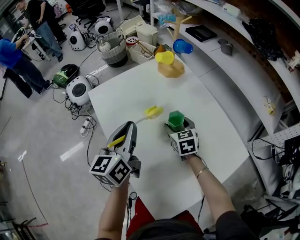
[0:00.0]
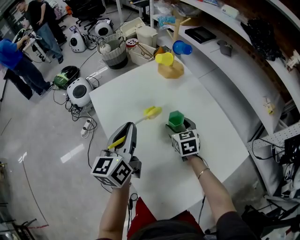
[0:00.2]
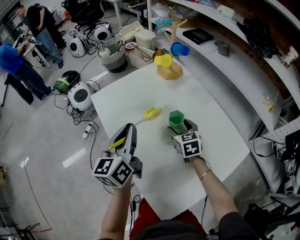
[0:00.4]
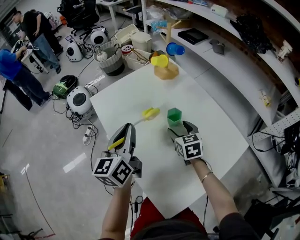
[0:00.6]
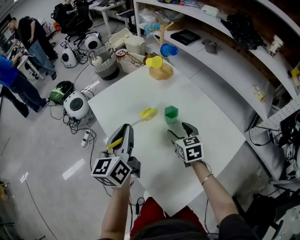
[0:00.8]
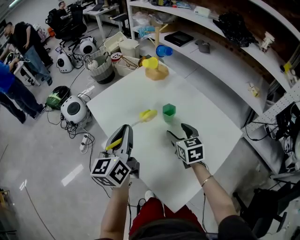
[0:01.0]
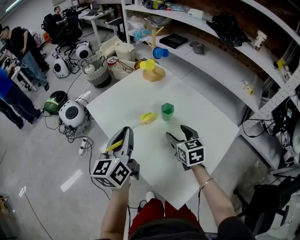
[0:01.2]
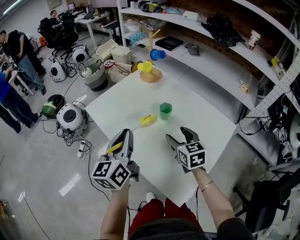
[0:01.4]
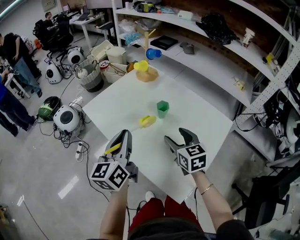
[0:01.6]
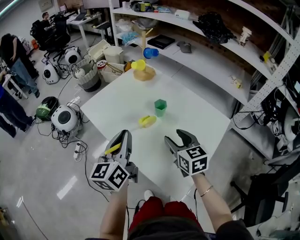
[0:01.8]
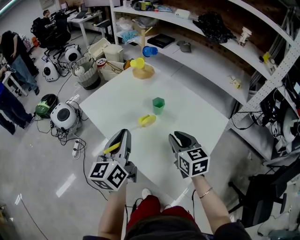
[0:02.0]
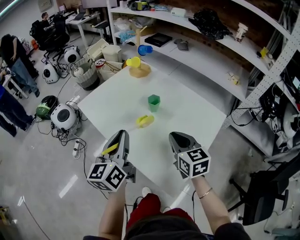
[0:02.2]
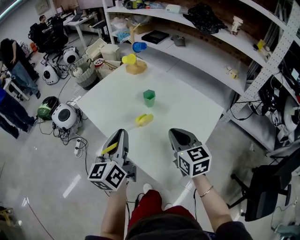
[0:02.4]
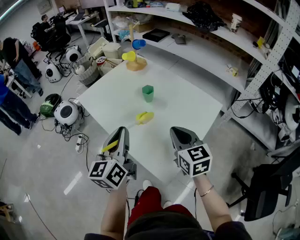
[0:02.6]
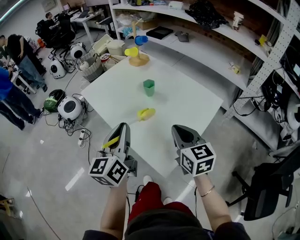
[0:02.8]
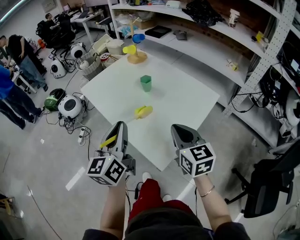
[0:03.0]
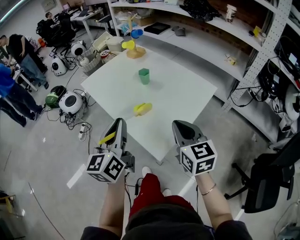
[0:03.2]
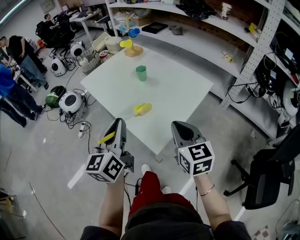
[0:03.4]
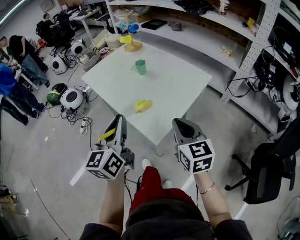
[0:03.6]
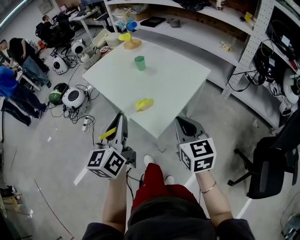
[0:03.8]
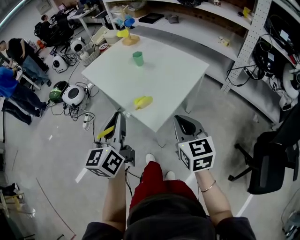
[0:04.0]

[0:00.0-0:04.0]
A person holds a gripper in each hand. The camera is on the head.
0:00.0 to 0:01.4: The left gripper heads backward, covering some 10 cm; the right gripper travels backward and upward by roughly 20 cm.
0:01.4 to 0:02.6: The right gripper heads backward, upward and to the right, covering approximately 15 cm, and closes its fingers, while the left gripper heads backward and to the right, covering about 10 cm.
0:02.6 to 0:04.0: The two grippers go roughly 25 cm backward.

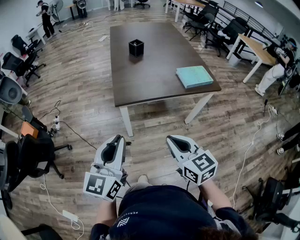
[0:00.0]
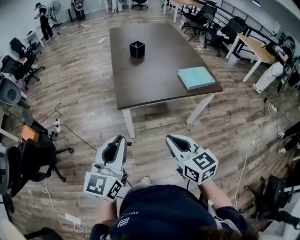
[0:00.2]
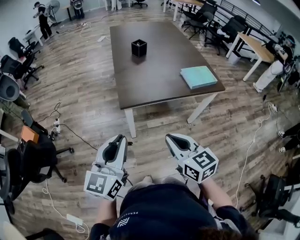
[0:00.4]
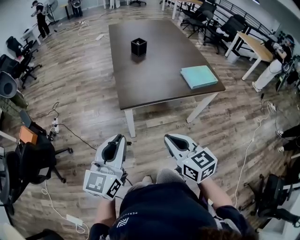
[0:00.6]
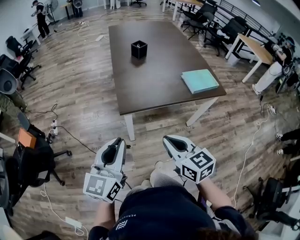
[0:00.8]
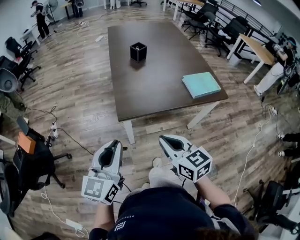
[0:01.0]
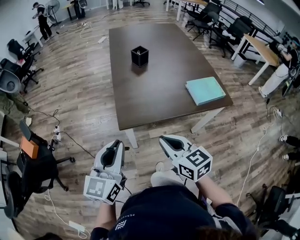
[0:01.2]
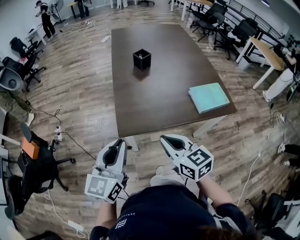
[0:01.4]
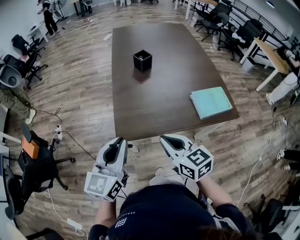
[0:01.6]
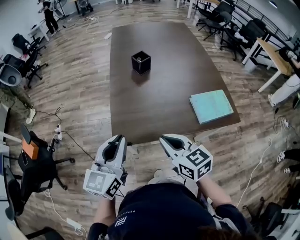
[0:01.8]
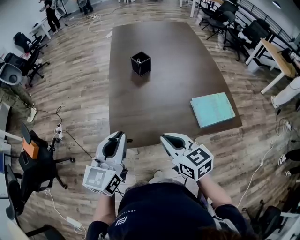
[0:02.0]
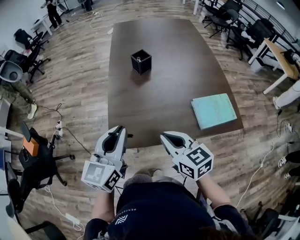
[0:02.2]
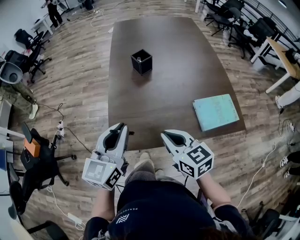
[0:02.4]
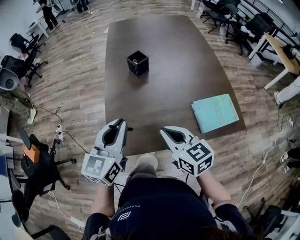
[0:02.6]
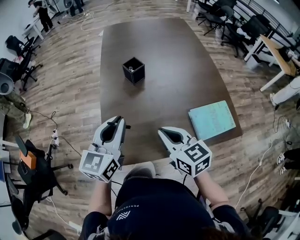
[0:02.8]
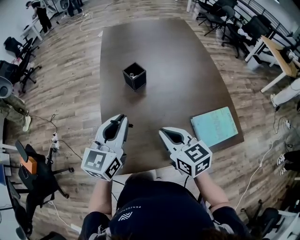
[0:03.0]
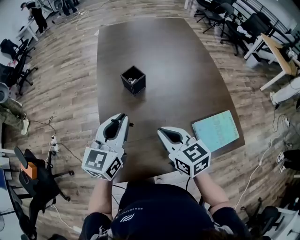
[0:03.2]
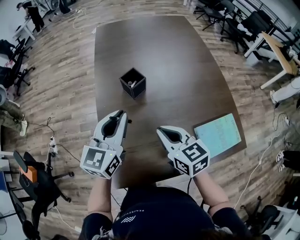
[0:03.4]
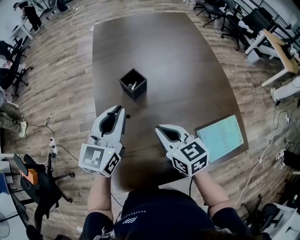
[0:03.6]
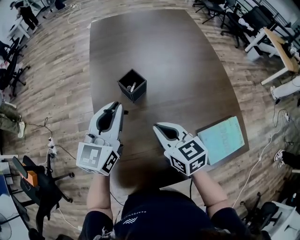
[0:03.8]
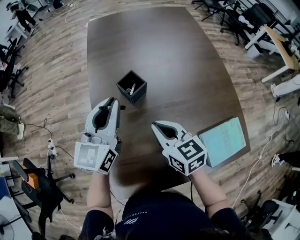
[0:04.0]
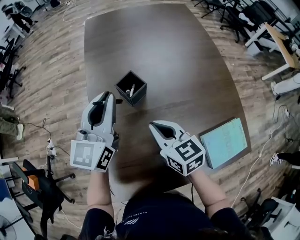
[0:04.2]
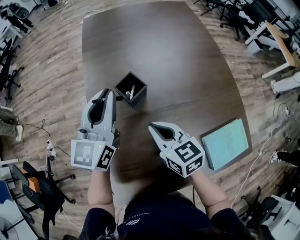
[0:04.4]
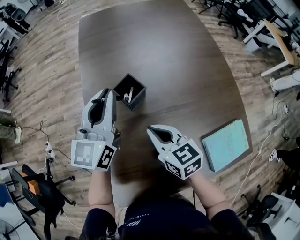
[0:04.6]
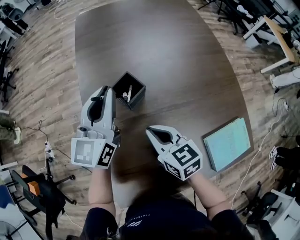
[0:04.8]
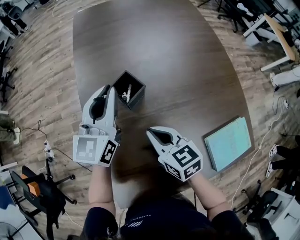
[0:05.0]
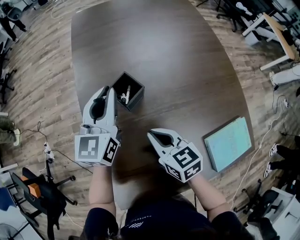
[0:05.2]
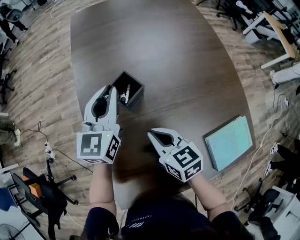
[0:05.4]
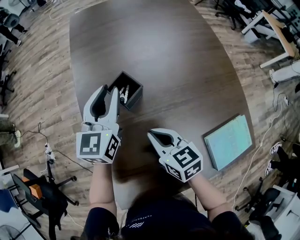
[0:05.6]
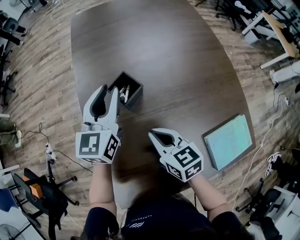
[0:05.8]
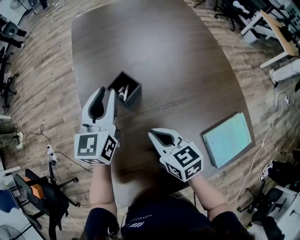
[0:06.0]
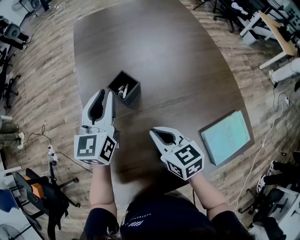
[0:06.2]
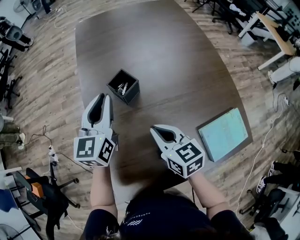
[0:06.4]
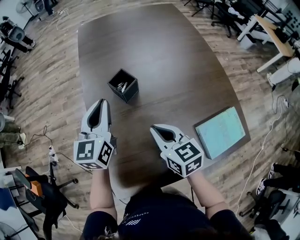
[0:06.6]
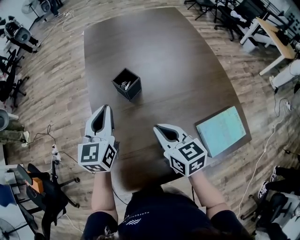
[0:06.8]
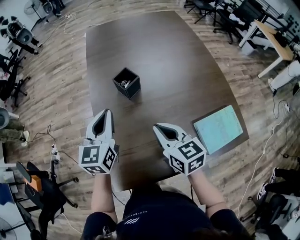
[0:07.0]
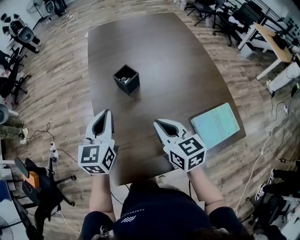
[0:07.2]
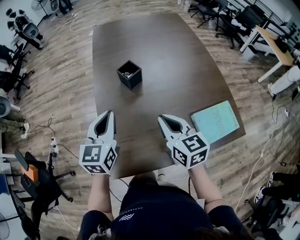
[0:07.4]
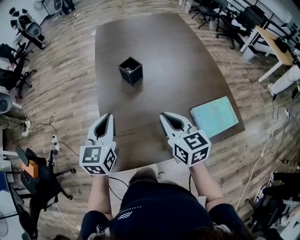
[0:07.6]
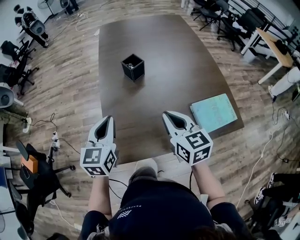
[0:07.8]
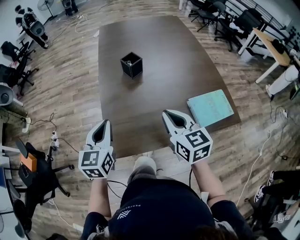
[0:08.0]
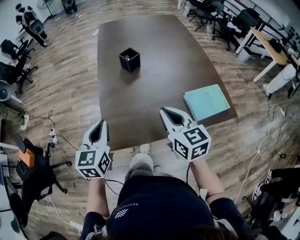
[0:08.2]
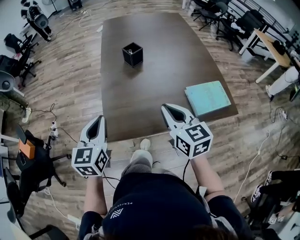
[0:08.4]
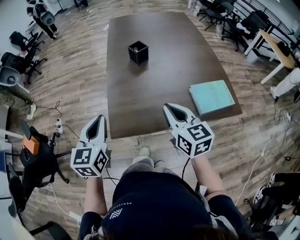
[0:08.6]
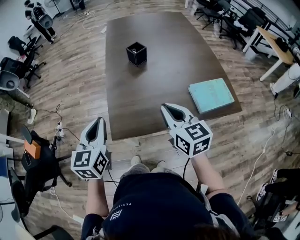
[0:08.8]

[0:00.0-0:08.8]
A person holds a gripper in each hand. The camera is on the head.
0:00.0 to 0:01.4: Both grippers travel together forward, approximately 20 cm.
0:01.4 to 0:03.0: The left gripper shifts roughly 30 cm forward and to the right. The right gripper travels forward by some 25 cm.
0:03.0 to 0:04.4: The grippers both shift forward by about 20 cm.
0:04.4 to 0:05.8: The left gripper heads downward, covering roughly 5 cm.
0:05.8 to 0:07.4: The left gripper is displaced backward by roughly 20 cm, and closes its fingers. Meanwhile the right gripper is displaced backward and upward by approximately 15 cm.
0:07.4 to 0:08.8: The left gripper shifts roughly 20 cm backward and to the left. Meanwhile the right gripper shifts approximately 15 cm backward.

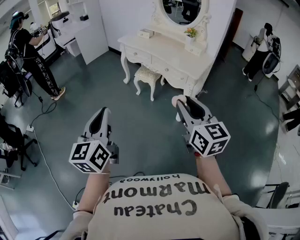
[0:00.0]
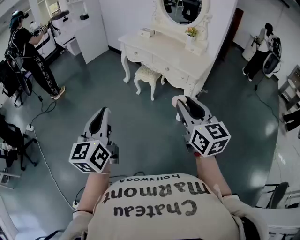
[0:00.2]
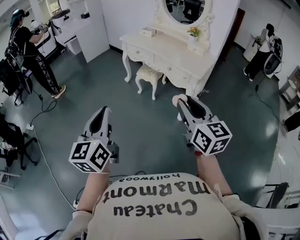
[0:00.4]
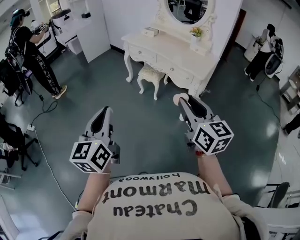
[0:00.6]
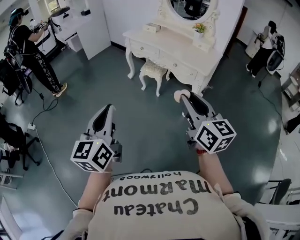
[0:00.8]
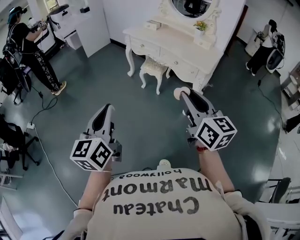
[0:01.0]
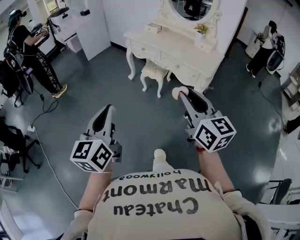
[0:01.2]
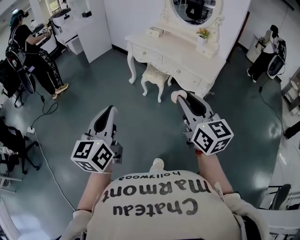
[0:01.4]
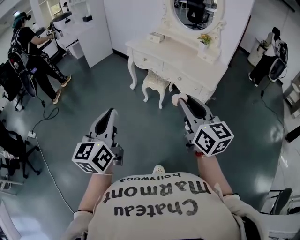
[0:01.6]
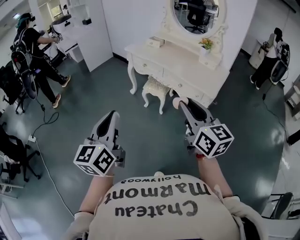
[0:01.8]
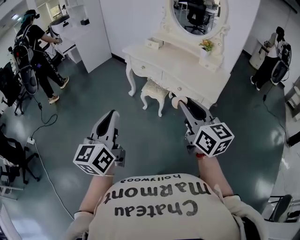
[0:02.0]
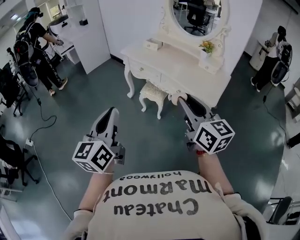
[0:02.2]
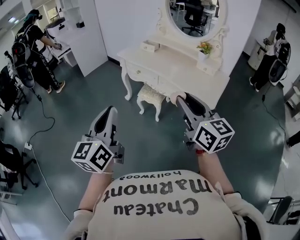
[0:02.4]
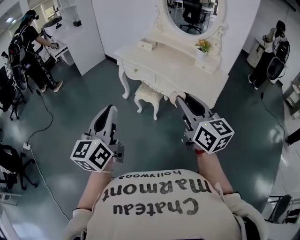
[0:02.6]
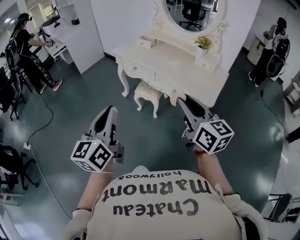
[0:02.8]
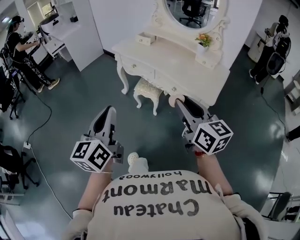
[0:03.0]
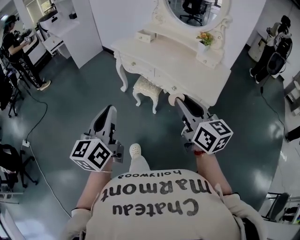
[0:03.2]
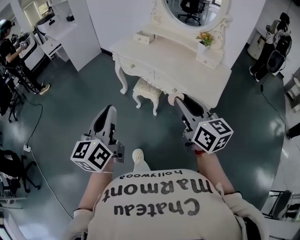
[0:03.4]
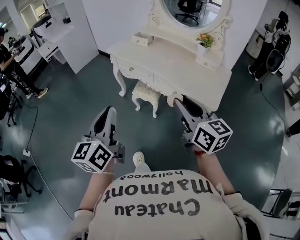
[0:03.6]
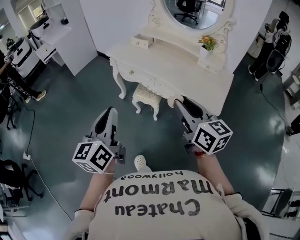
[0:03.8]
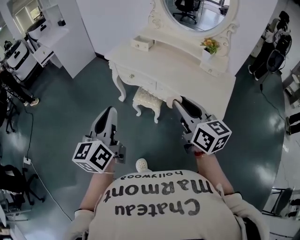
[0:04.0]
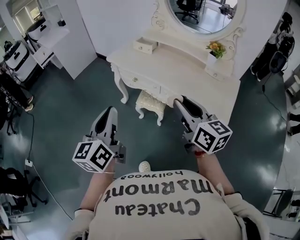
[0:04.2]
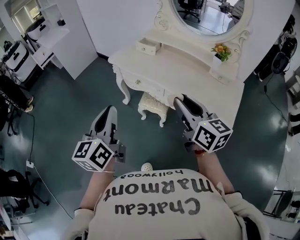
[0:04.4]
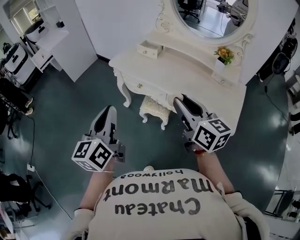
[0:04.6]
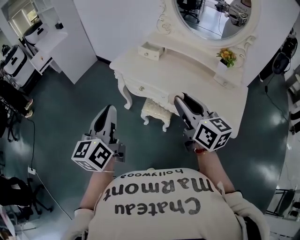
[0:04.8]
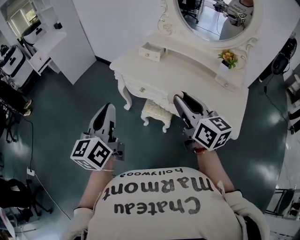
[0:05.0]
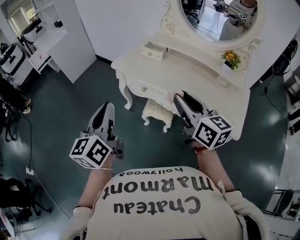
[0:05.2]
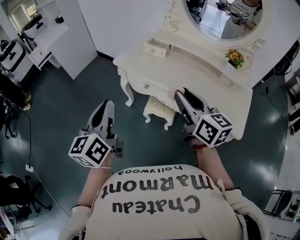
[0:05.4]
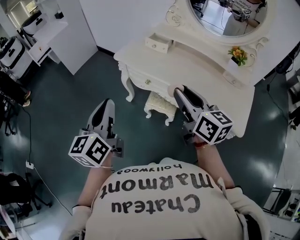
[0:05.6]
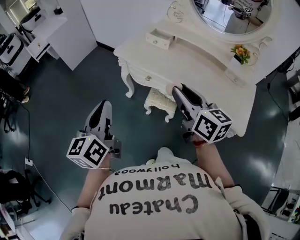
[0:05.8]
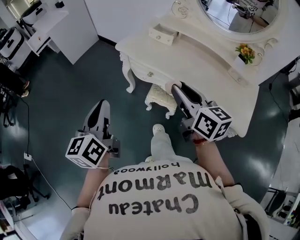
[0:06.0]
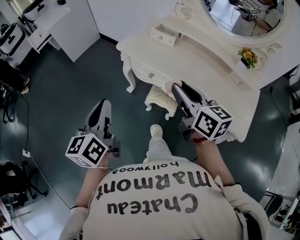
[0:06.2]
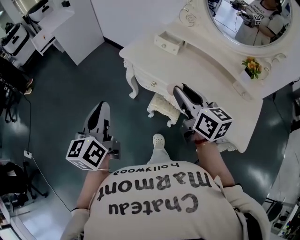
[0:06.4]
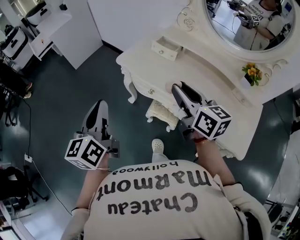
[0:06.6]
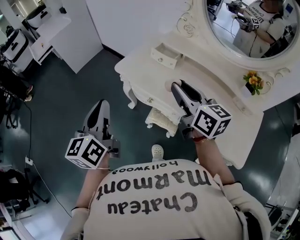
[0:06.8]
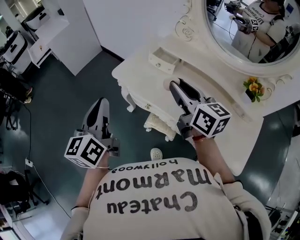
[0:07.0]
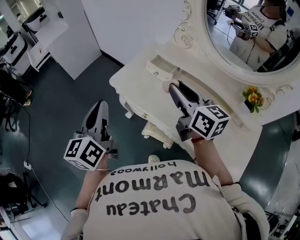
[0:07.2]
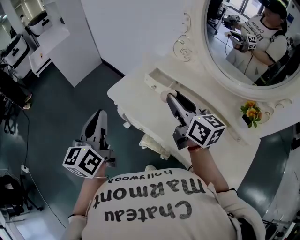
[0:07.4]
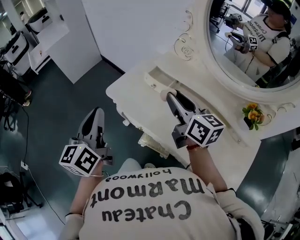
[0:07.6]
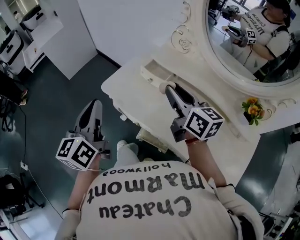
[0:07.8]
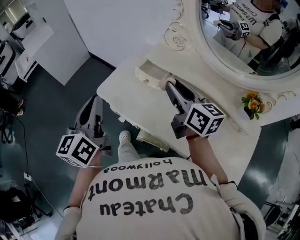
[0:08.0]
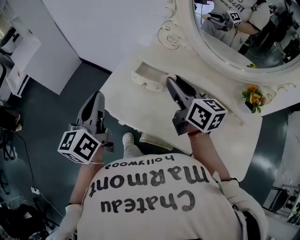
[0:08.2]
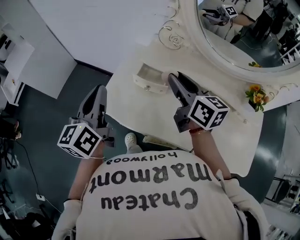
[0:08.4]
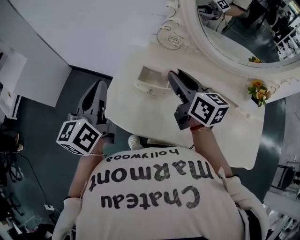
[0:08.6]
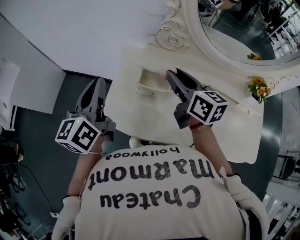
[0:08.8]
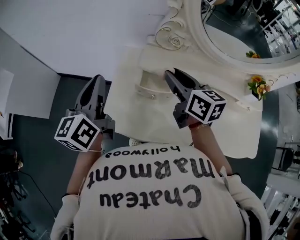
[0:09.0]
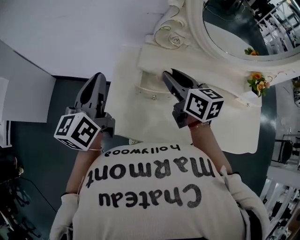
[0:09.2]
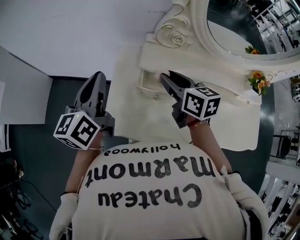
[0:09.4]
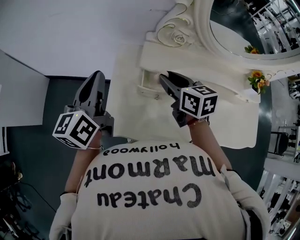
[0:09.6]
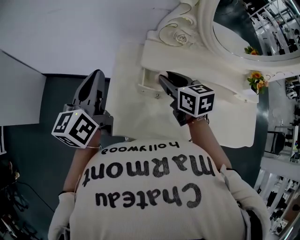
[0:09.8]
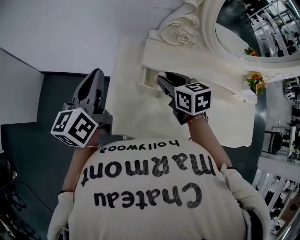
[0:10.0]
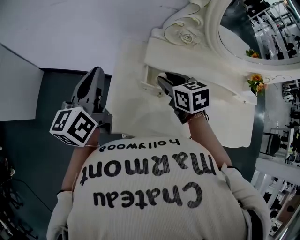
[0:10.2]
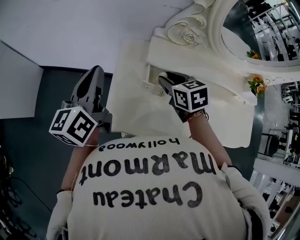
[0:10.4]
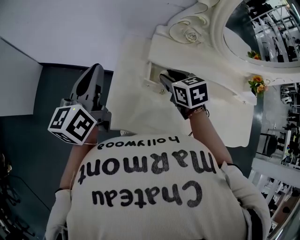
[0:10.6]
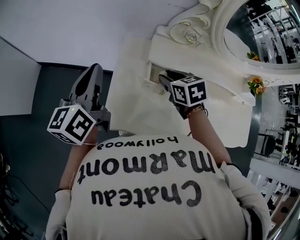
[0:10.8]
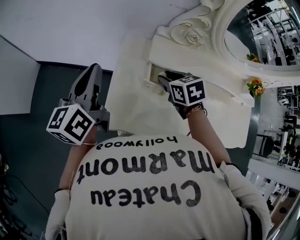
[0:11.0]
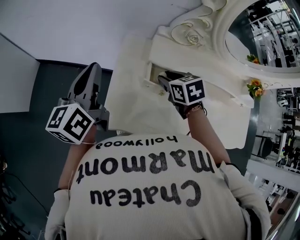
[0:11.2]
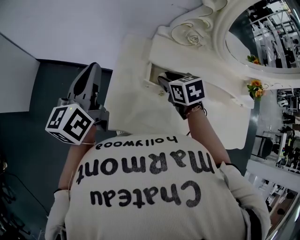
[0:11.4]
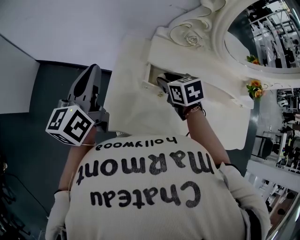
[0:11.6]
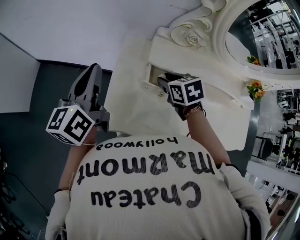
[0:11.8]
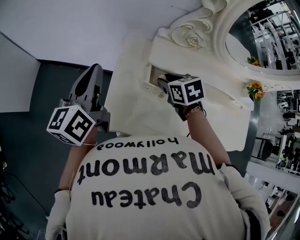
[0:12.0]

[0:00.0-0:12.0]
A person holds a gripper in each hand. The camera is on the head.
0:00.0 to 0:01.6: Both grippers move forward and to the left, roughly 15 cm.
0:01.6 to 0:03.0: Both grippers move forward, about 20 cm.
0:03.0 to 0:04.4: The two grippers go approximately 25 cm forward.
0:04.4 to 0:06.0: The left gripper is displaced to the left, forward and downward by about 15 cm. Meanwhile the right gripper is displaced forward and to the left by some 15 cm.
0:06.0 to 0:07.6: The right gripper travels forward by approximately 25 cm. Meanwhile the left gripper moves forward and to the right, roughly 25 cm.
0:07.6 to 0:09.0: The left gripper changes place by approximately 30 cm, and rotates approximately 30 degrees, while the right gripper ends up approximately 20 cm from where it was, and swivels some 30 degrees.
0:09.0 to 0:10.4: The left gripper heads to the left and forward, covering about 5 cm, while the right gripper is displaced downward and to the left by roughly 15 cm, and tips its fingers downward by some 30 degrees.
0:10.4 to 0:12.0: The grippers make only small movements.
